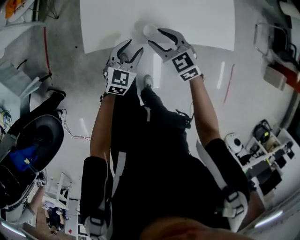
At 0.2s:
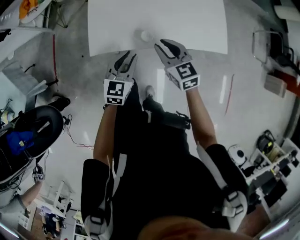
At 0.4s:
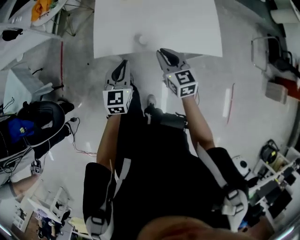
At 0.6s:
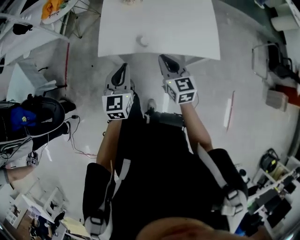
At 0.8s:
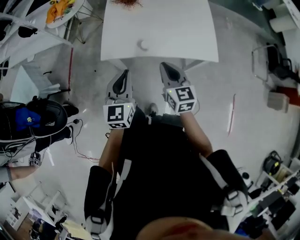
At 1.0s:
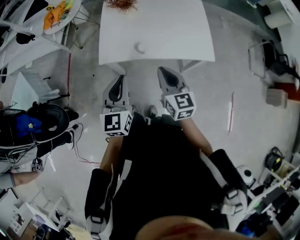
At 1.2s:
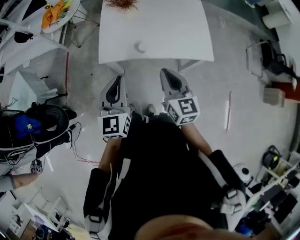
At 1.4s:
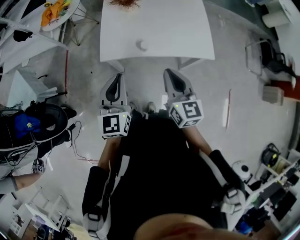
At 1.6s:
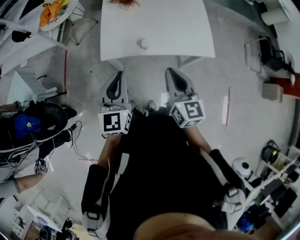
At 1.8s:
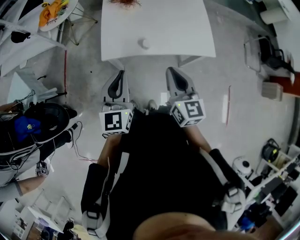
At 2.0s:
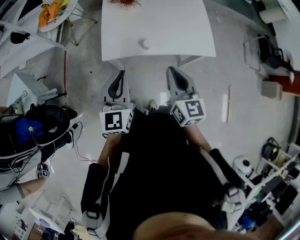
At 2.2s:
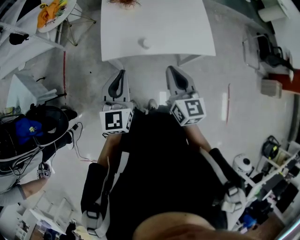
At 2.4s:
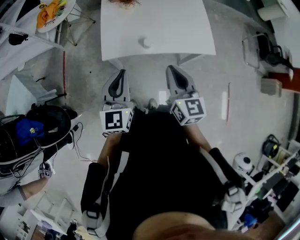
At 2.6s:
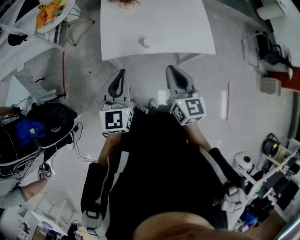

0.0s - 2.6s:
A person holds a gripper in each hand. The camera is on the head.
0.0s - 1.2s: Both grippers move upward and backward, some 30 cm. The right gripper turns by roughly 30 degrees, and closes up. The left gripper changes its angle by approximately 30 degrees, and closes up.
1.2s - 2.6s: The grippers make only small movements.

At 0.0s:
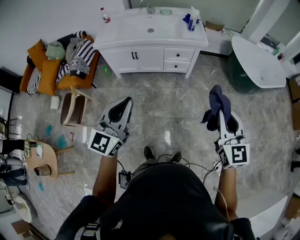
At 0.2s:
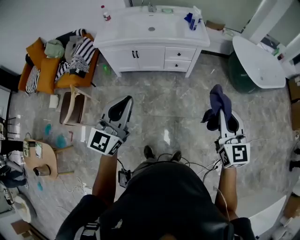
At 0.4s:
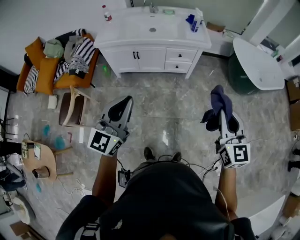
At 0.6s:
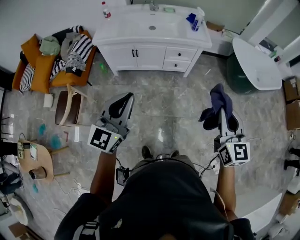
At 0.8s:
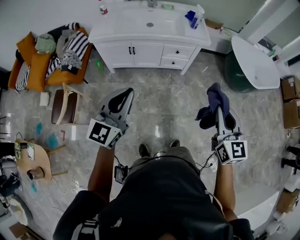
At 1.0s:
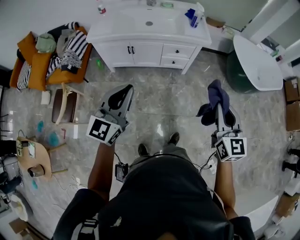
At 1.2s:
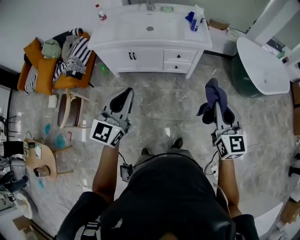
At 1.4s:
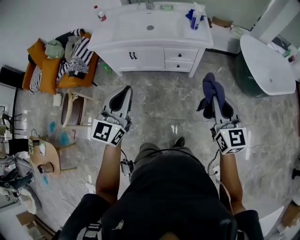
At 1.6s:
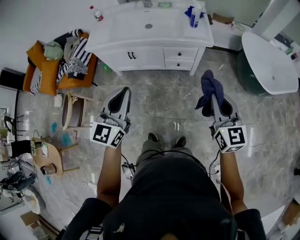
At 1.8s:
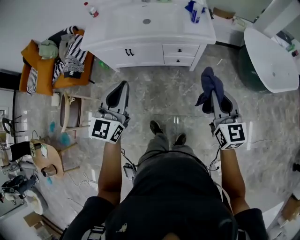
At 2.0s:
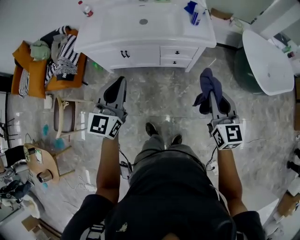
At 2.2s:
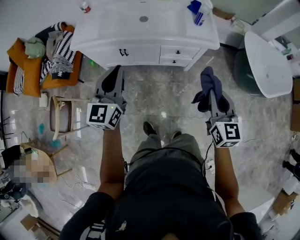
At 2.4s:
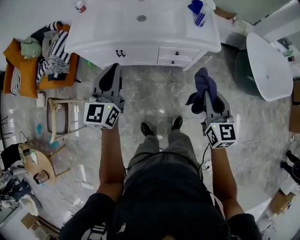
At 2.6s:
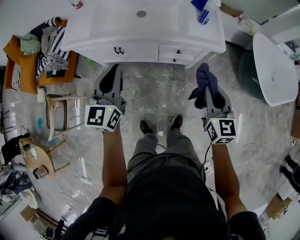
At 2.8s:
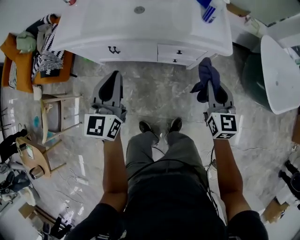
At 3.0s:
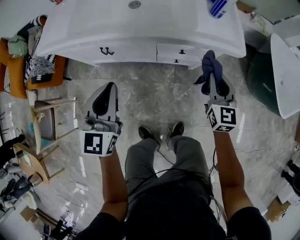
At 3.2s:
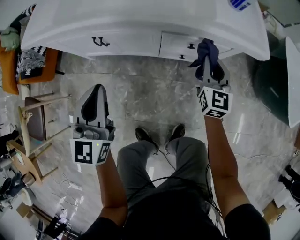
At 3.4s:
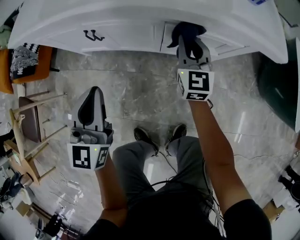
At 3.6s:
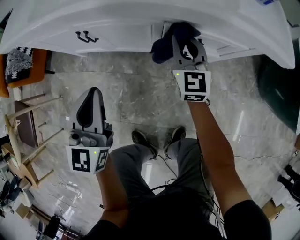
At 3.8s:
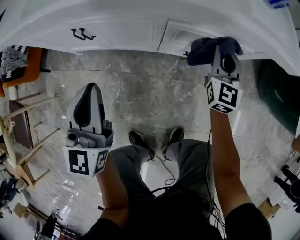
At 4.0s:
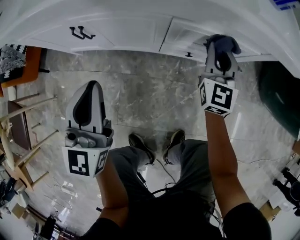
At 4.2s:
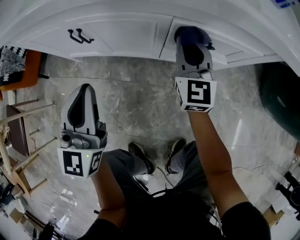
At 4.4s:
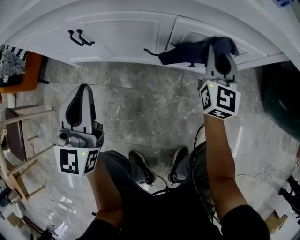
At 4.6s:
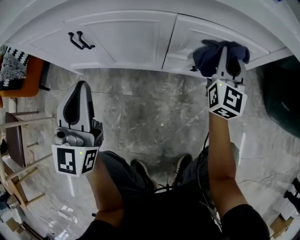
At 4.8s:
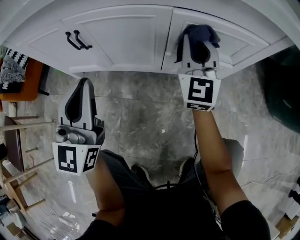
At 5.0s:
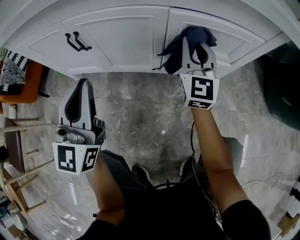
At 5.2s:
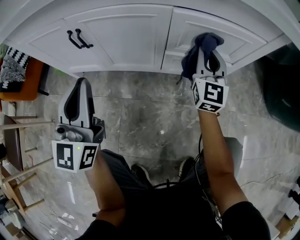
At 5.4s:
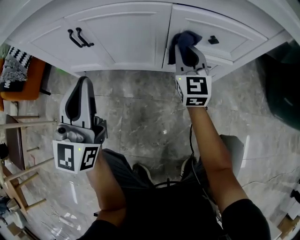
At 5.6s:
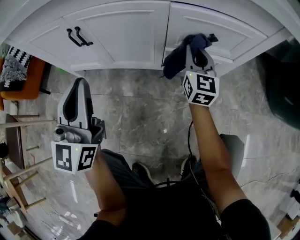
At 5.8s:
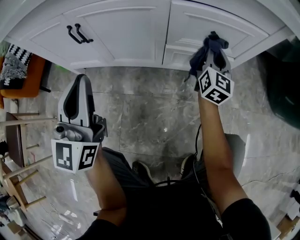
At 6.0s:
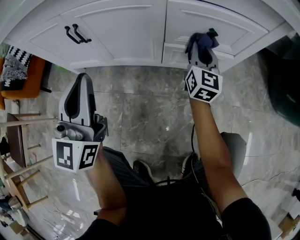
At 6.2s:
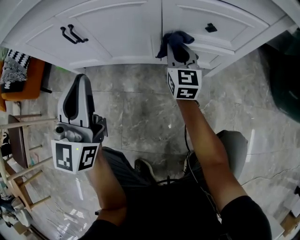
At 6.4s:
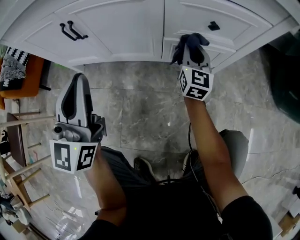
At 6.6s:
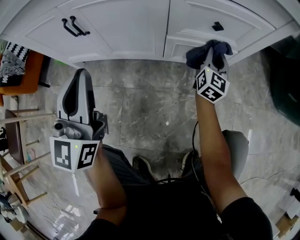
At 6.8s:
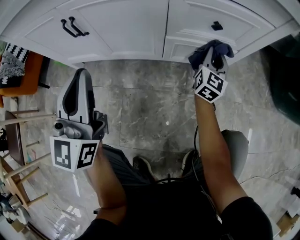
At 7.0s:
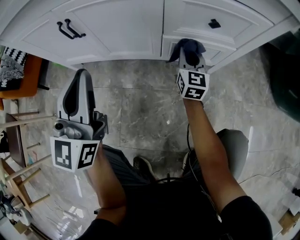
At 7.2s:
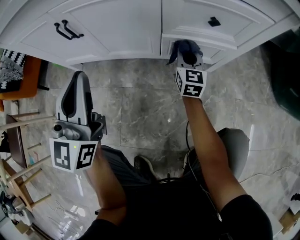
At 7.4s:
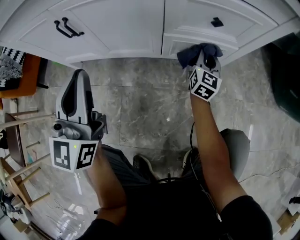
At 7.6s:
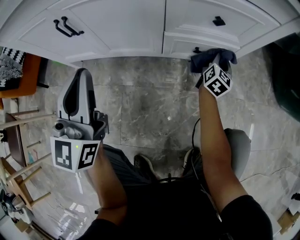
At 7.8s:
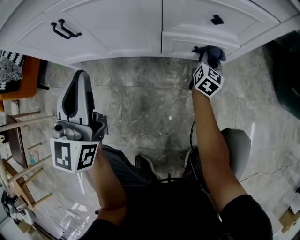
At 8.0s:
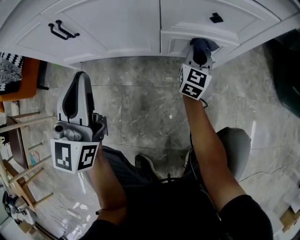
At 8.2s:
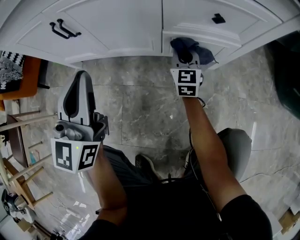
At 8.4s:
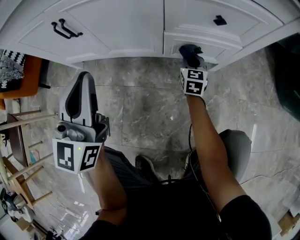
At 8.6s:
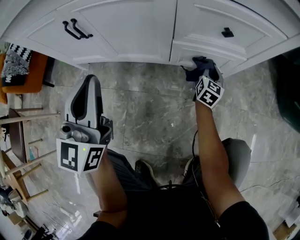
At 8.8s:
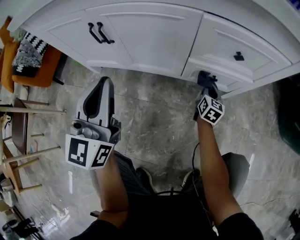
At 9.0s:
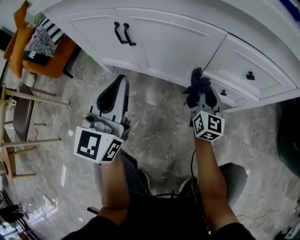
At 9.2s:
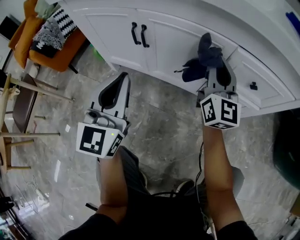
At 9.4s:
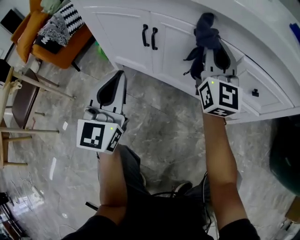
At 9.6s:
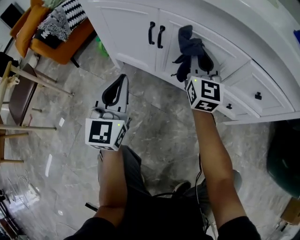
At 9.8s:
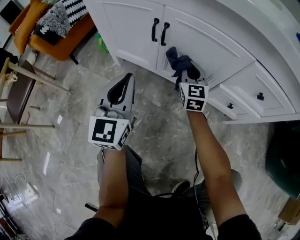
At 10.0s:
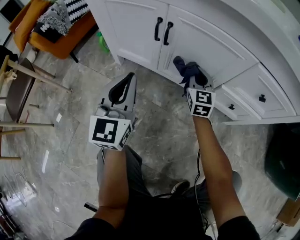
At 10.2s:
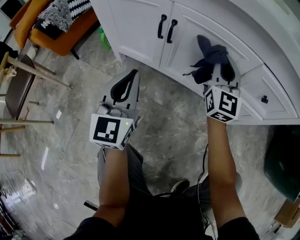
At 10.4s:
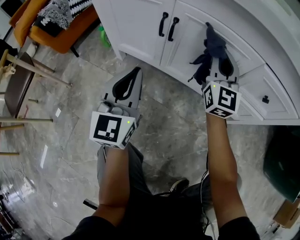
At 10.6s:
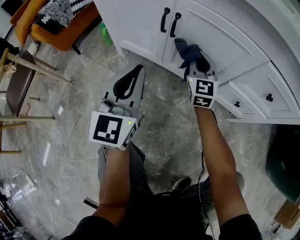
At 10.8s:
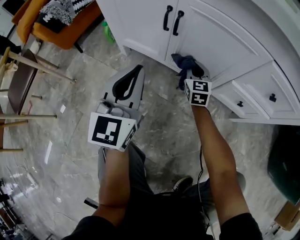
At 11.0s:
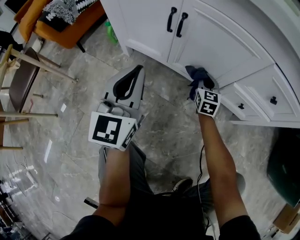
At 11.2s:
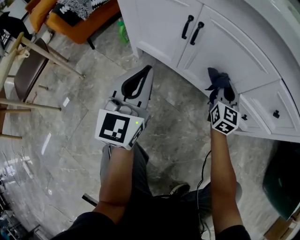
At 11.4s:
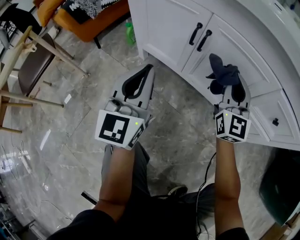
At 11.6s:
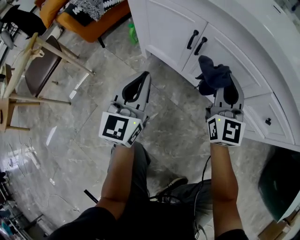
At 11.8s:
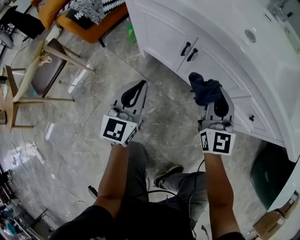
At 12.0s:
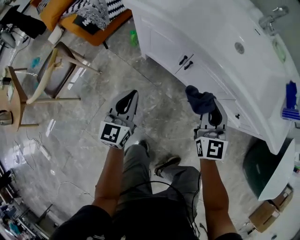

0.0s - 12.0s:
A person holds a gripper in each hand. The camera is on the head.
0.0s - 1.6s: Both grippers travel together forward, about 20 cm.
1.6s - 3.0s: The two grippers go roughly 40 cm forward and downward.
3.0s - 4.4s: The left gripper heads downward, covering roughly 25 cm. Meanwhile the right gripper goes roughly 25 cm downward and forward.
4.4s - 6.0s: The right gripper swings left and right, approximately 15 cm each way, with 5 reversals.
6.0s - 7.6s: The right gripper moves left and right over approximately 20 cm, changing direction 3 times, and swivels approximately 30 degrees.
7.6s - 9.0s: The right gripper moves left and right over some 20 cm, changing direction 2 times, and changes its angle by approximately 40 degrees.
9.0s - 10.4s: The right gripper goes up and down, approximately 25 cm each way, reversing 2 times, and changes its angle by roughly 30 degrees, while the left gripper heads to the left and downward, covering roughly 10 cm.
10.4s - 12.0s: The right gripper heads upward, backward and to the left, covering approximately 25 cm, and swivels about 20 degrees. The left gripper shifts roughly 20 cm upward and to the left.

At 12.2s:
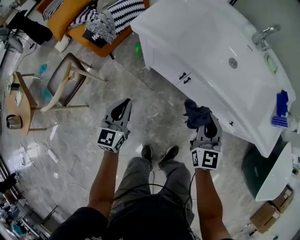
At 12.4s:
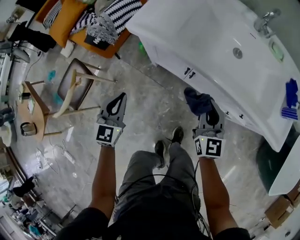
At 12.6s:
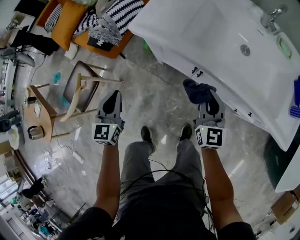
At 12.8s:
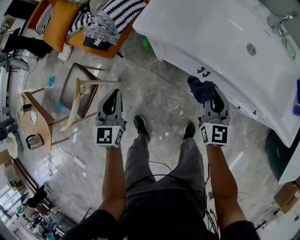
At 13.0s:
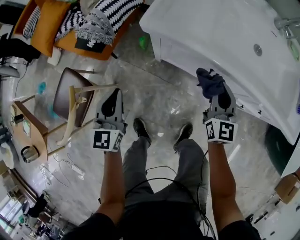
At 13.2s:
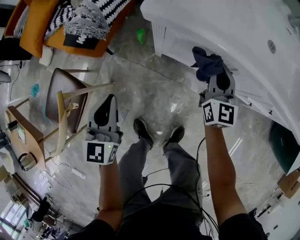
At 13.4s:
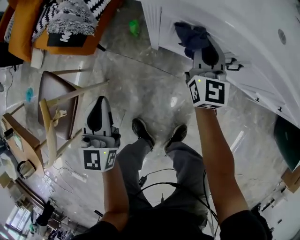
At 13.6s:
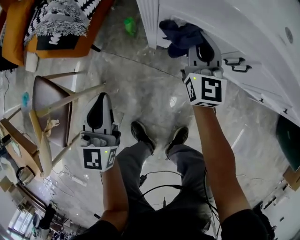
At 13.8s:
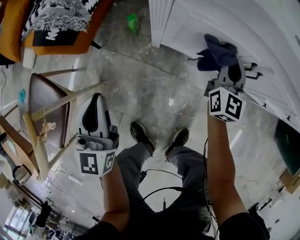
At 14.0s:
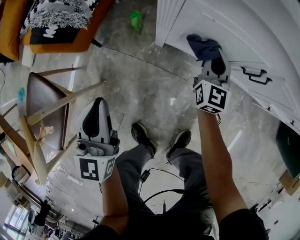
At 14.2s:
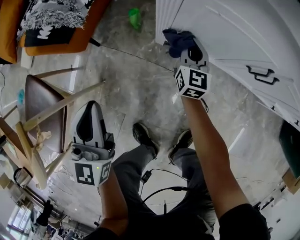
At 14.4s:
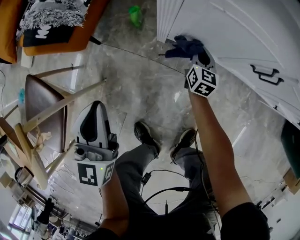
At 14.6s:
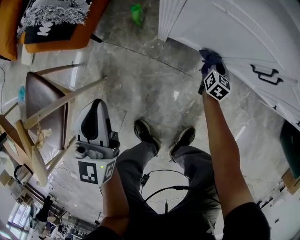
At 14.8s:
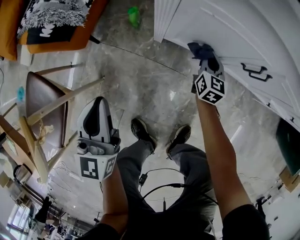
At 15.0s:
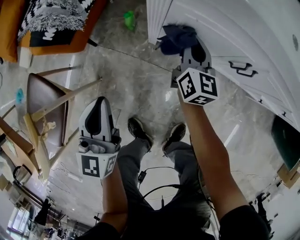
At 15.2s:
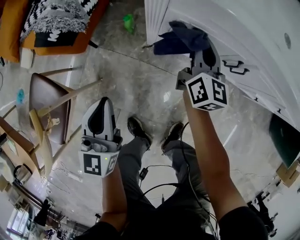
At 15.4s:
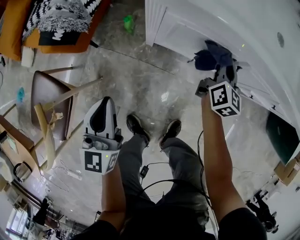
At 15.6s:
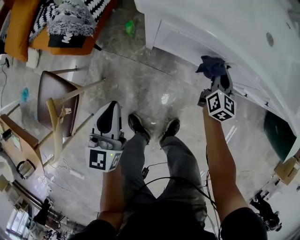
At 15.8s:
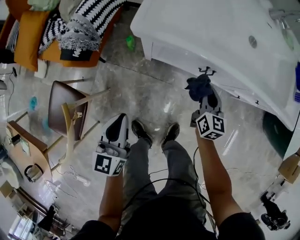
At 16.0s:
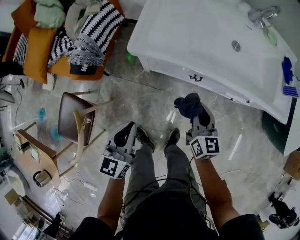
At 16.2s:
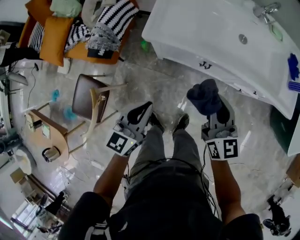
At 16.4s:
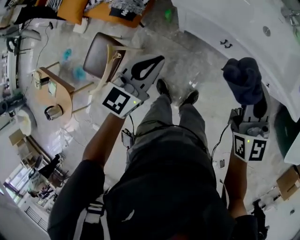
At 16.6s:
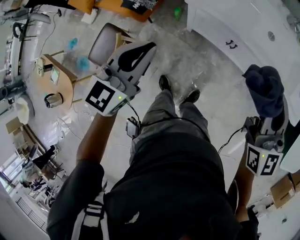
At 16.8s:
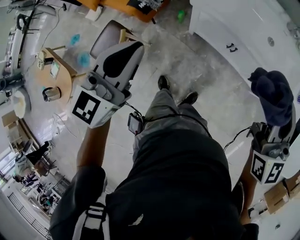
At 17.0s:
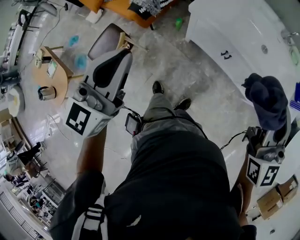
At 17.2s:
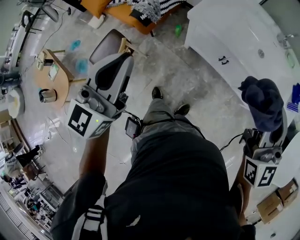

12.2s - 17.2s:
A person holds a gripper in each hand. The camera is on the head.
12.2s - 13.8s: The right gripper goes about 40 cm downward, forward and to the left, and turns by some 20 degrees. Meanwhile the left gripper moves to the left, downward and forward, some 30 cm.
13.8s - 15.6s: The left gripper shifts some 10 cm upward, while the right gripper shifts roughly 5 cm to the right, and travels downward and back again, some 25 cm each way.
15.6s - 17.2s: Both grippers travel together upward, roughly 50 cm. The right gripper rotates about 40 degrees.

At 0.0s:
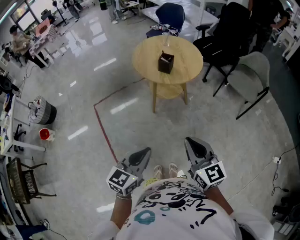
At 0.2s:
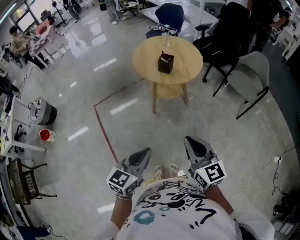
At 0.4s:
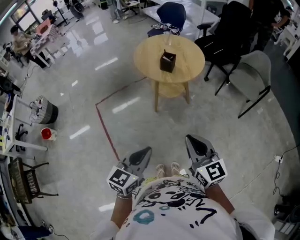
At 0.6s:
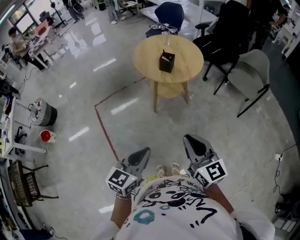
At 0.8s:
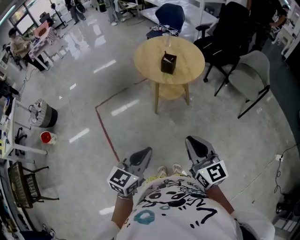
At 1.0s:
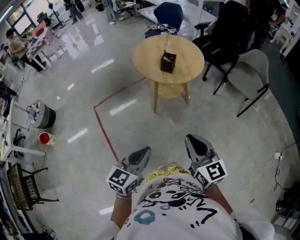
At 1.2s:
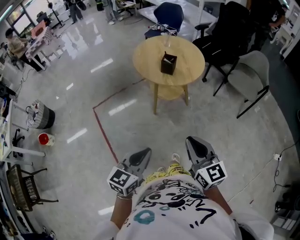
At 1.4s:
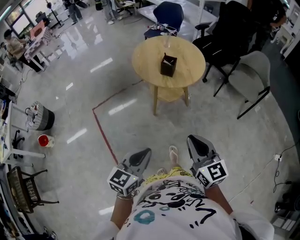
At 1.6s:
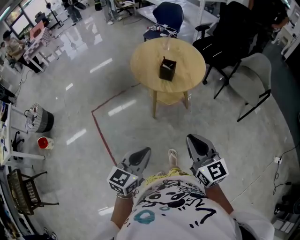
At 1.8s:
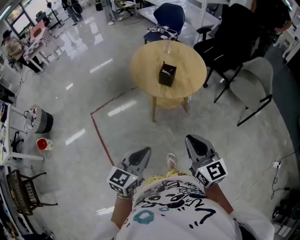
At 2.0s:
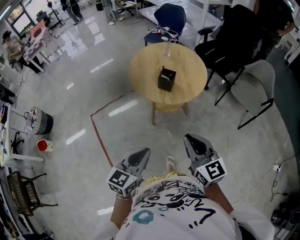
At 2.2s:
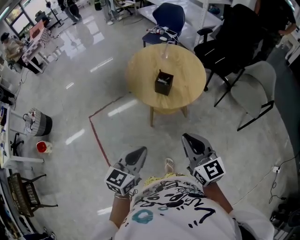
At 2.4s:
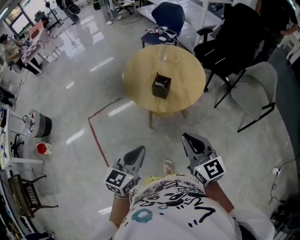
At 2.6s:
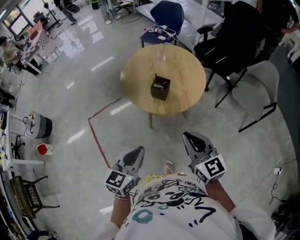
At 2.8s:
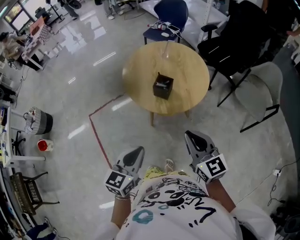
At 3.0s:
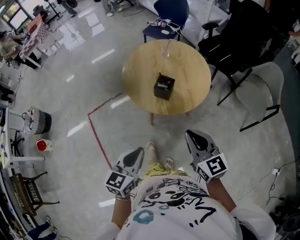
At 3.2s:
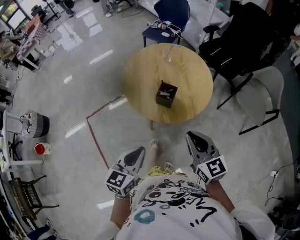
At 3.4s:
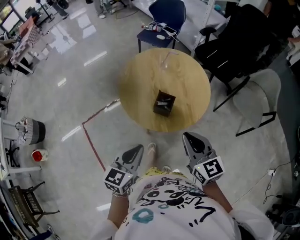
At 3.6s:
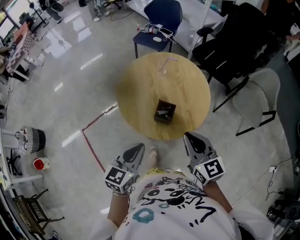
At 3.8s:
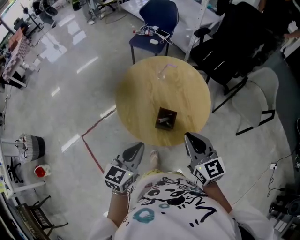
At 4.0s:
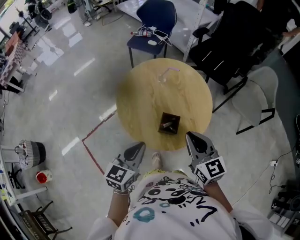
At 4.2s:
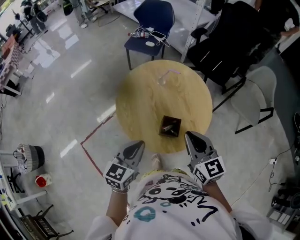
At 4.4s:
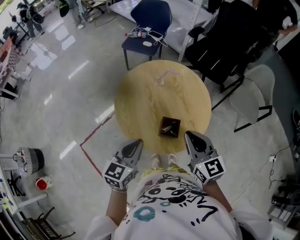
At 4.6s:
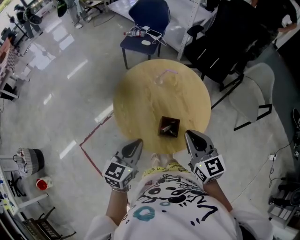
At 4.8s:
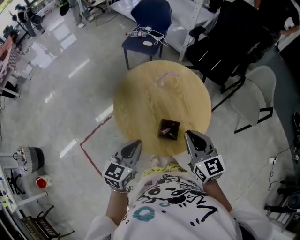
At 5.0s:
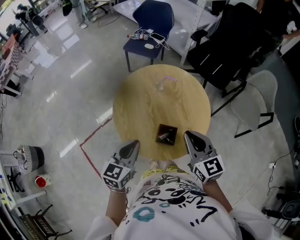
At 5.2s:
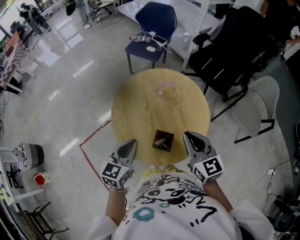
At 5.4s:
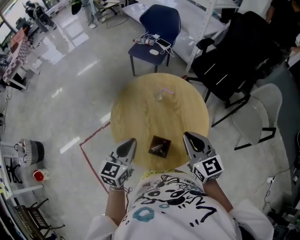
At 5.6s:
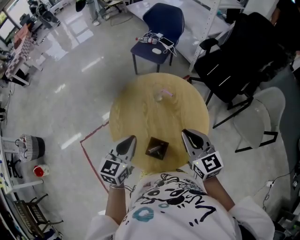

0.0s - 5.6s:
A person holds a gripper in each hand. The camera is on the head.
0.0s - 1.4s: The left gripper shifts by approximately 5 cm. The right gripper shifts approximately 5 cm forward.
1.4s - 2.8s: Both grippers travel together forward, about 25 cm.
2.8s - 4.2s: Both grippers travel together forward, roughly 25 cm.
4.2s - 5.6s: The left gripper travels forward by roughly 10 cm; the right gripper shifts about 15 cm forward and to the right.
